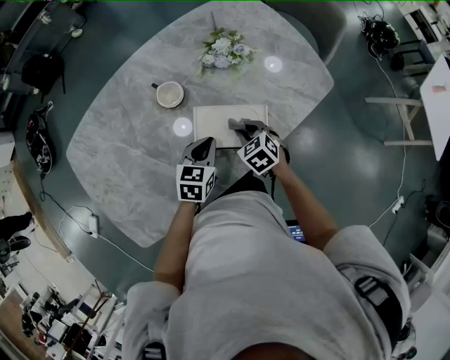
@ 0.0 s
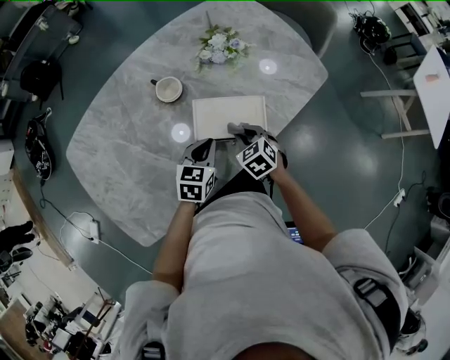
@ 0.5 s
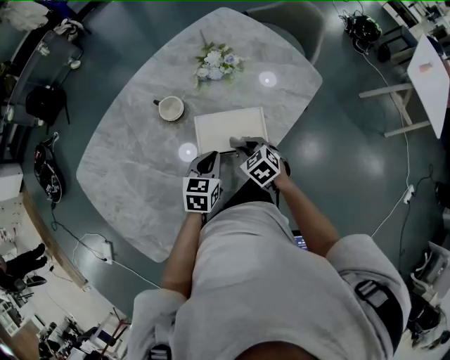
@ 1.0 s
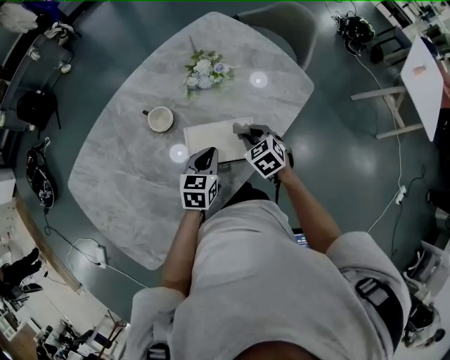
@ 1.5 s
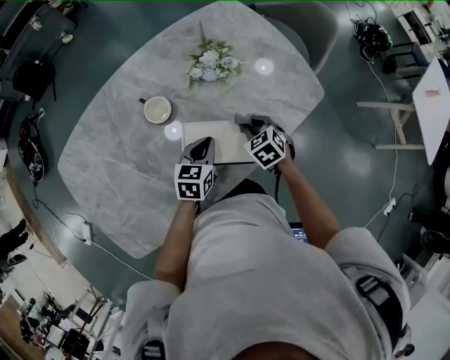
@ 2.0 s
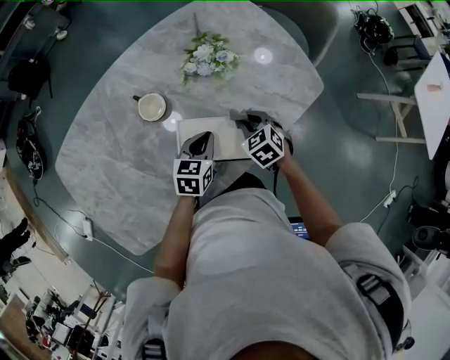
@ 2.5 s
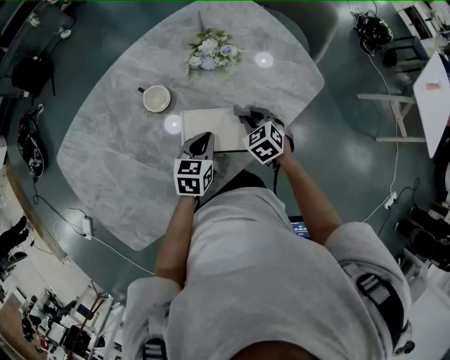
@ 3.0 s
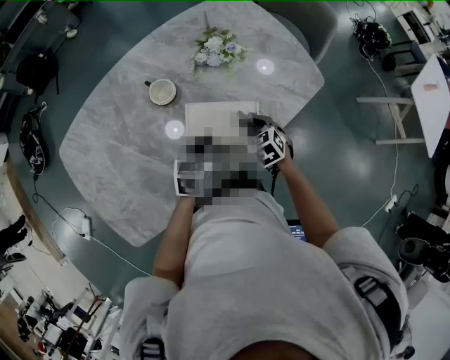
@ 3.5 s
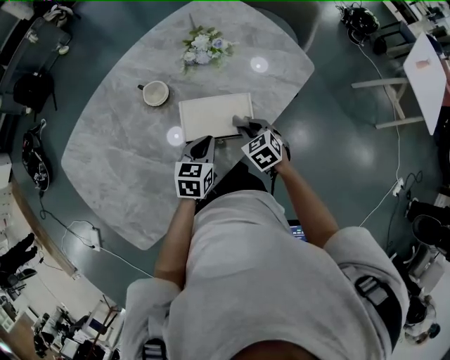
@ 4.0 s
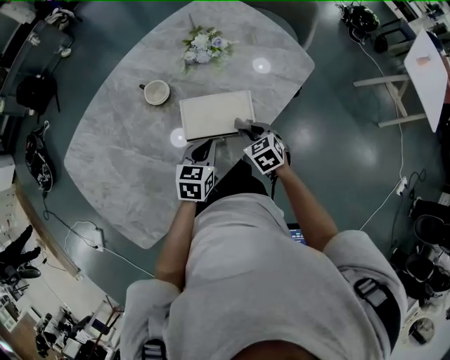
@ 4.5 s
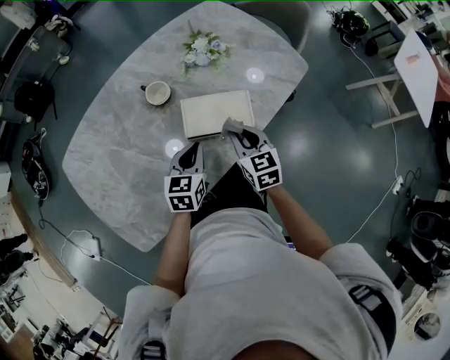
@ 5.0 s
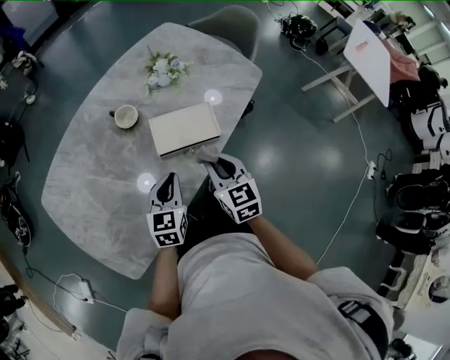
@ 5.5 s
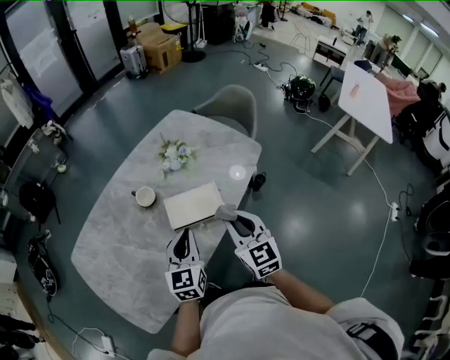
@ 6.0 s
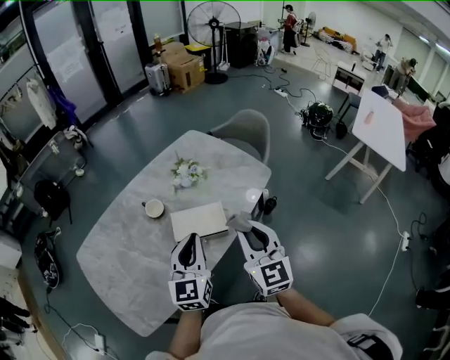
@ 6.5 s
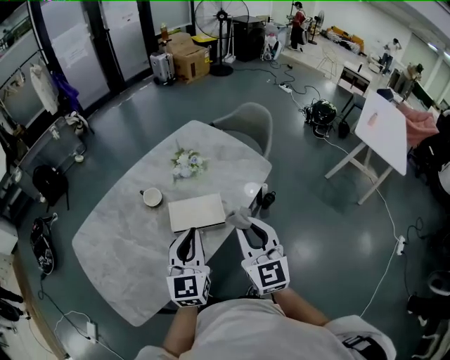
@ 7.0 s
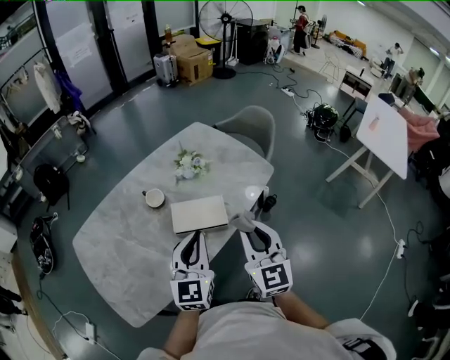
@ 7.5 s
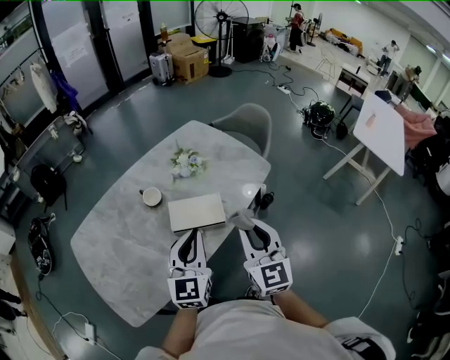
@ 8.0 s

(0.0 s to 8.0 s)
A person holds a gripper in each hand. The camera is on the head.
0.0 s - 2.0 s: The right gripper moves forward and to the right, some 10 cm. The left gripper travels forward by some 5 cm.
2.0 s - 4.0 s: Both grippers move backward, some 10 cm.
4.0 s - 6.0 s: The right gripper shifts some 25 cm upward and backward, and tilts its fingers about 40 degrees upward, while the left gripper is displaced upward by some 15 cm, and turns by roughly 30 degrees.
6.0 s - 8.0 s: The right gripper heads upward and to the right, covering roughly 10 cm; the left gripper is displaced upward by some 10 cm.

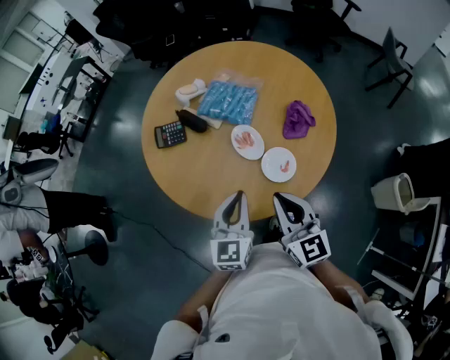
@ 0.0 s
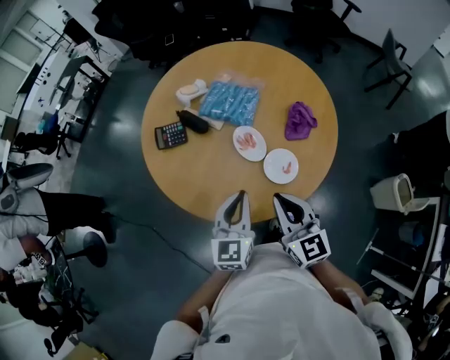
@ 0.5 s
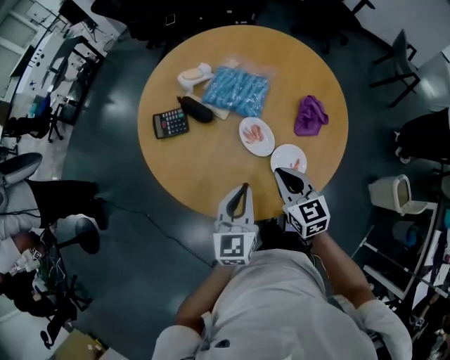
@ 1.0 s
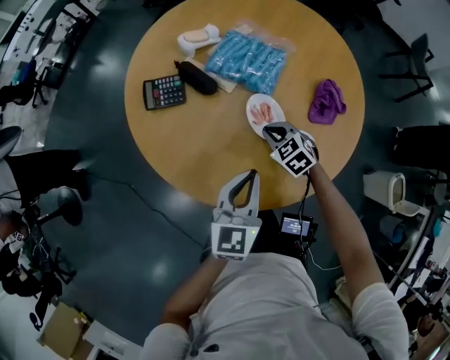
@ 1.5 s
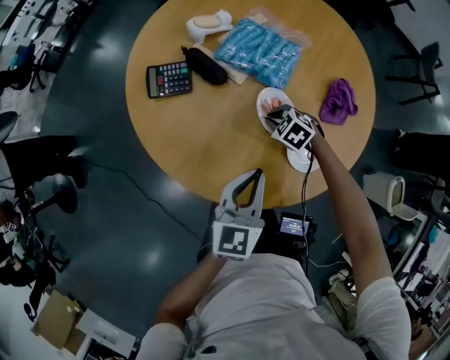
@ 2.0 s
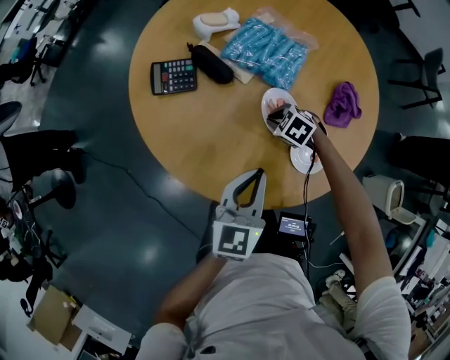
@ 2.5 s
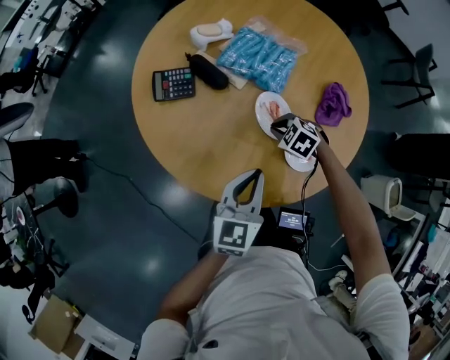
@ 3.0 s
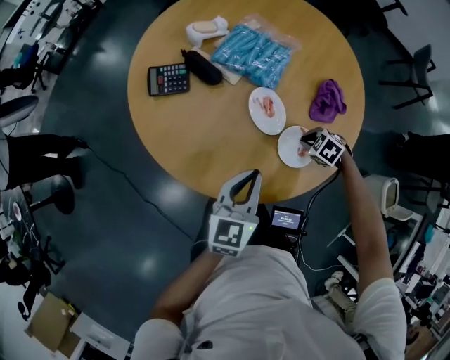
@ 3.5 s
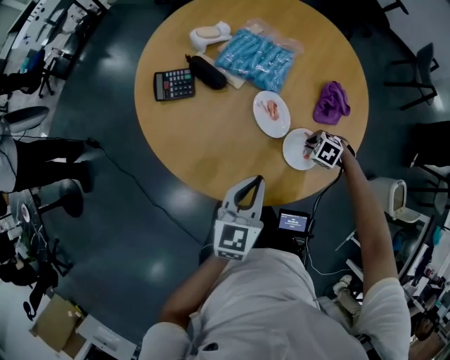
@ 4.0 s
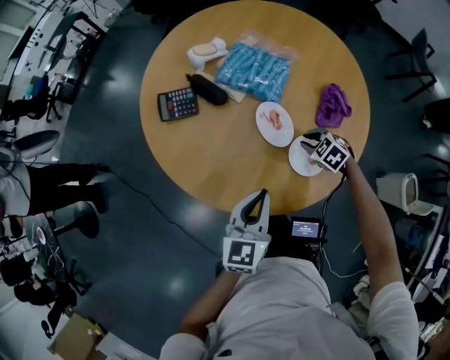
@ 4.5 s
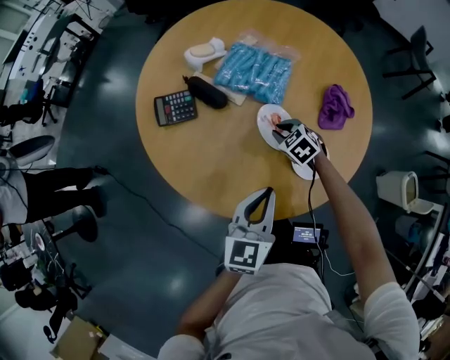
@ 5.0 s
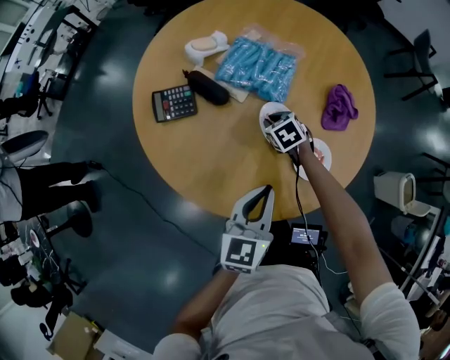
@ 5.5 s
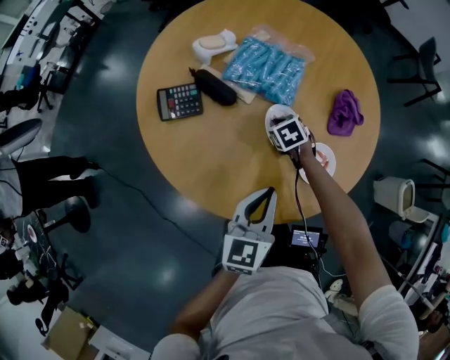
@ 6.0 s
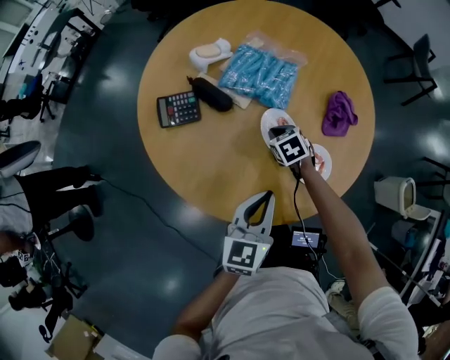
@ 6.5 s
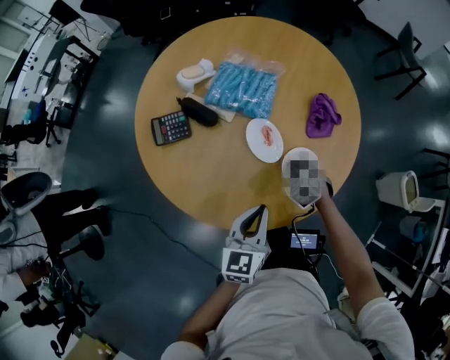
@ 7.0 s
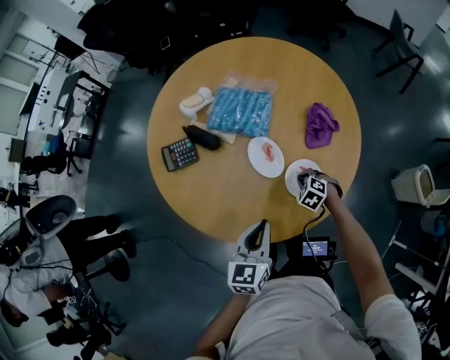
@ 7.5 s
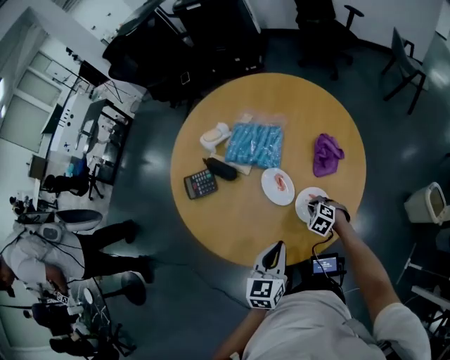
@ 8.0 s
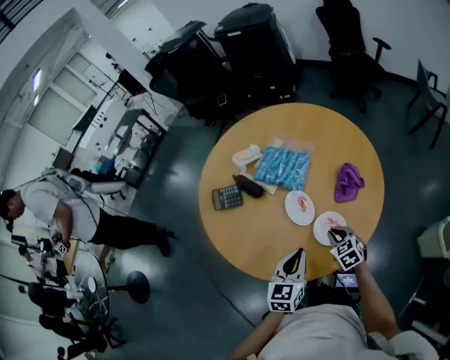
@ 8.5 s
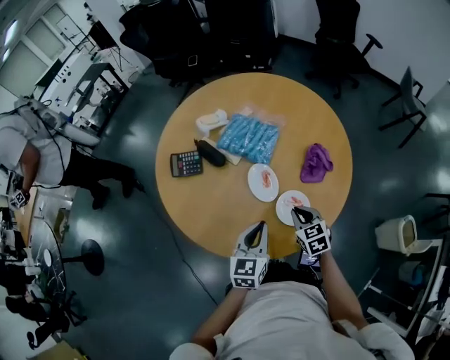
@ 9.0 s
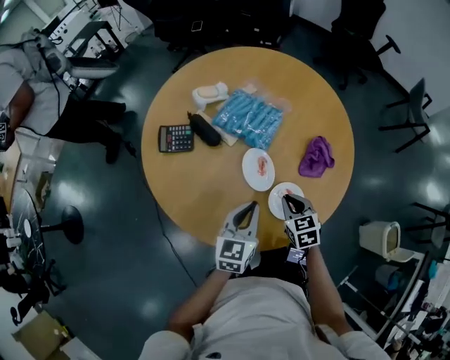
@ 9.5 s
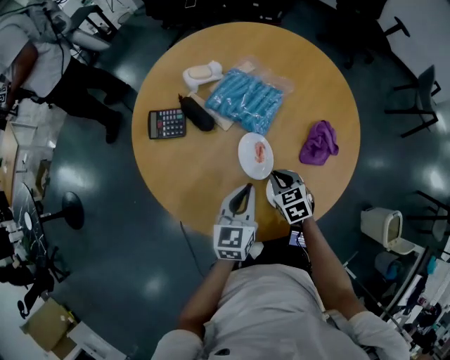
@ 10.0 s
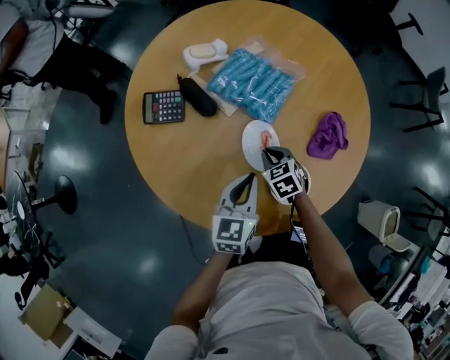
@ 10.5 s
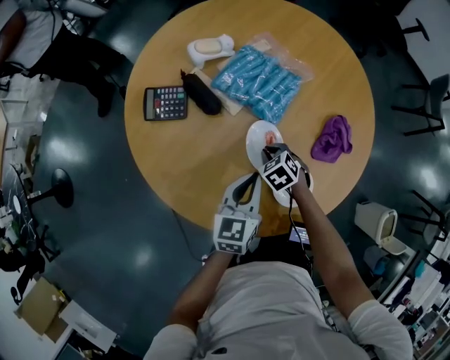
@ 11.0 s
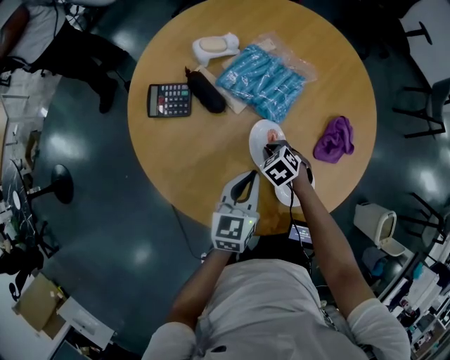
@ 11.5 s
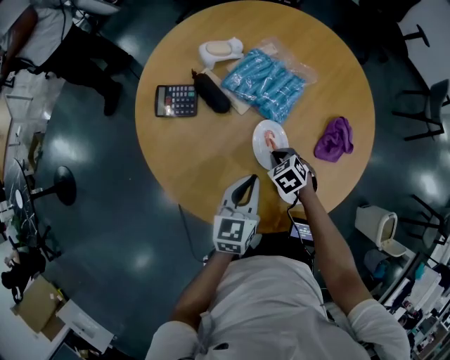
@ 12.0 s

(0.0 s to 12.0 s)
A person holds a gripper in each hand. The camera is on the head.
0.0 s - 2.0 s: The right gripper goes about 40 cm downward and forward, and angles its fingers downward, by approximately 60 degrees, while the left gripper heads downward and forward, covering roughly 10 cm.
2.0 s - 4.0 s: The right gripper shifts by roughly 20 cm.
4.0 s - 6.0 s: The right gripper changes place by roughly 20 cm, and swivels approximately 40 degrees.
6.0 s - 8.0 s: The left gripper travels to the right and backward by roughly 5 cm. The right gripper travels backward and to the right by about 20 cm, and rotates about 20 degrees.
8.0 s - 10.0 s: The right gripper shifts roughly 10 cm upward and forward, and changes its angle by about 20 degrees. Meanwhile the left gripper goes about 10 cm forward.
10.0 s - 12.0 s: The right gripper goes approximately 5 cm downward, and swivels approximately 20 degrees.

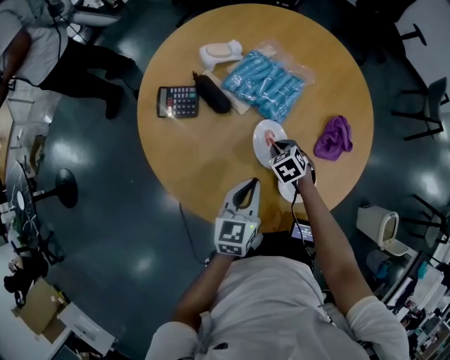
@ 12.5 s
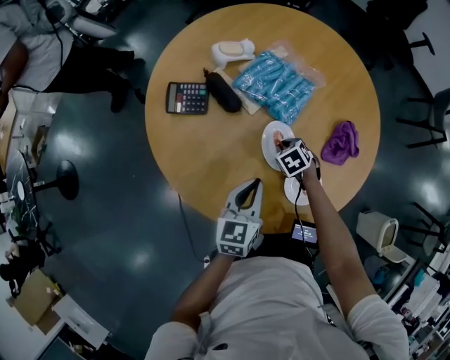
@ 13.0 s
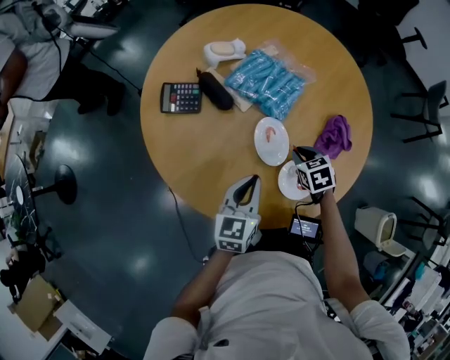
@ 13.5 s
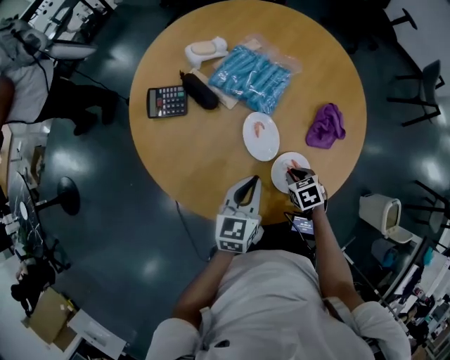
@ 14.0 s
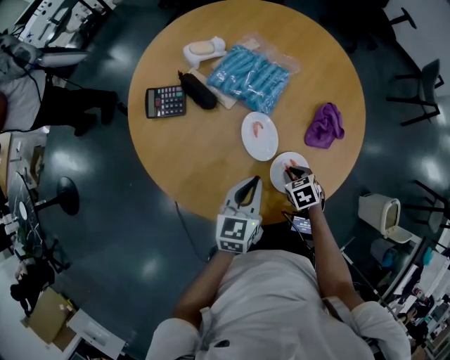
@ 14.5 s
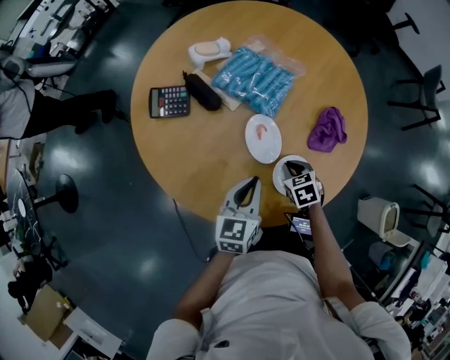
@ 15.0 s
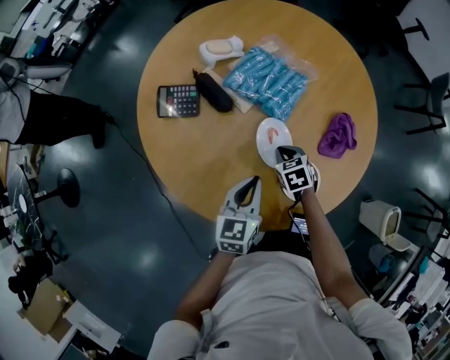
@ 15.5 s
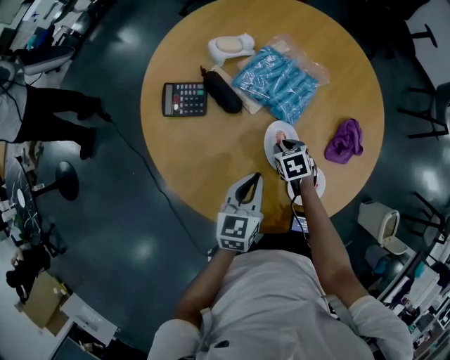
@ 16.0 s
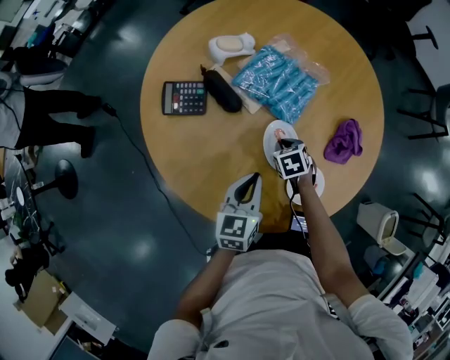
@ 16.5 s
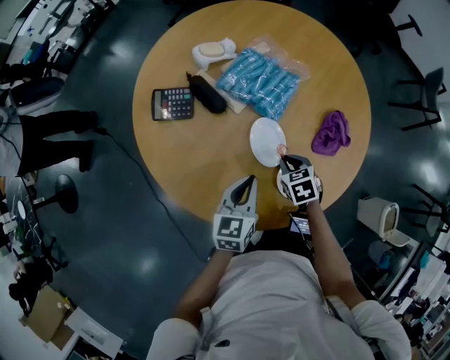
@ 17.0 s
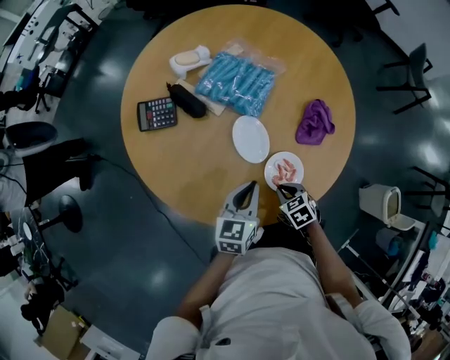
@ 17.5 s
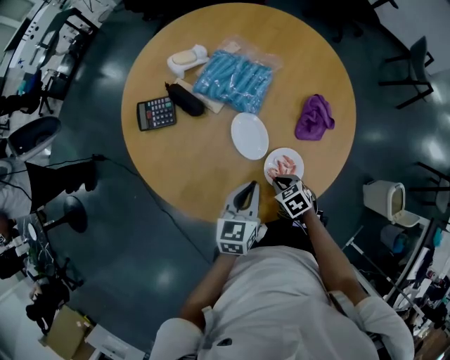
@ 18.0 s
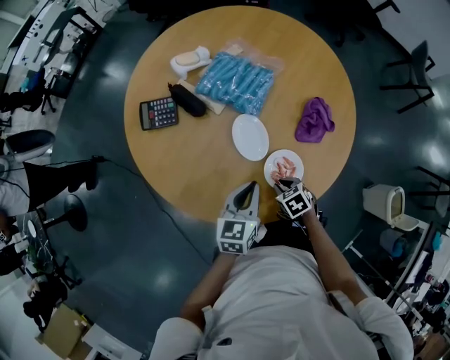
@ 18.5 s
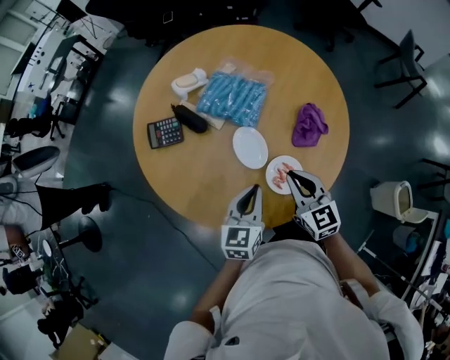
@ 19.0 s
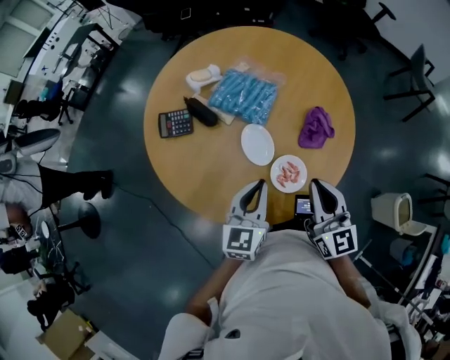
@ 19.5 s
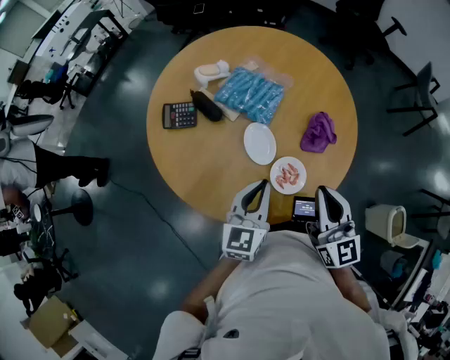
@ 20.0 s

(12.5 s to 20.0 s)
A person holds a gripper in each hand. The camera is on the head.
12.5 s - 14.5 s: The right gripper goes about 15 cm backward and to the right.
14.5 s - 16.5 s: The right gripper shifts roughly 15 cm forward and to the left, while the left gripper travels to the left by roughly 5 cm.
16.5 s - 18.0 s: The right gripper is displaced backward by some 20 cm. Meanwhile the left gripper travels to the right and backward by approximately 10 cm.
18.0 s - 20.0 s: The right gripper heads upward, covering some 35 cm, and tilts its fingers roughly 60 degrees upward, while the left gripper moves upward, roughly 15 cm.
